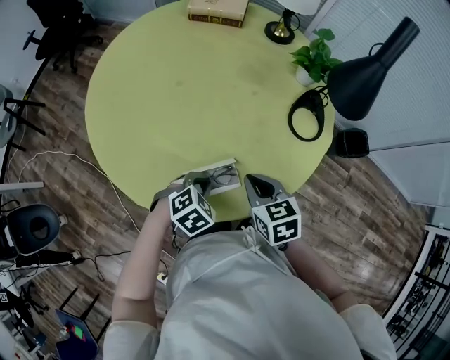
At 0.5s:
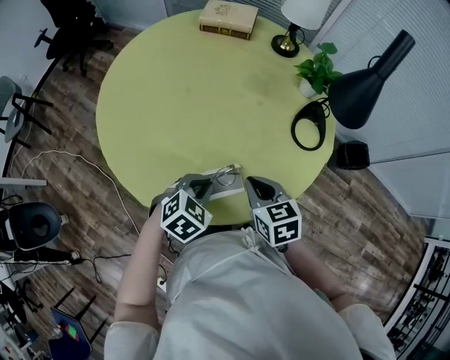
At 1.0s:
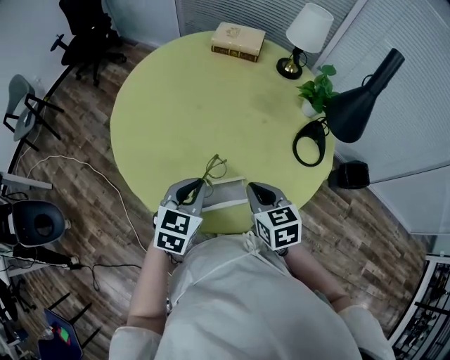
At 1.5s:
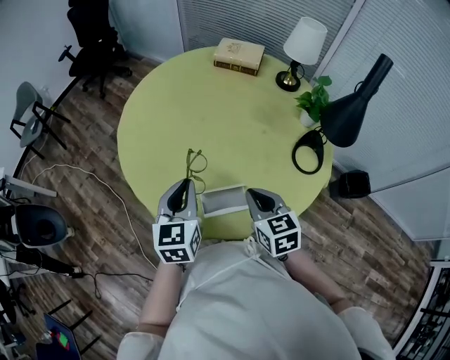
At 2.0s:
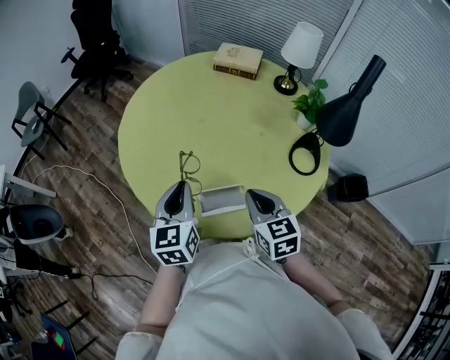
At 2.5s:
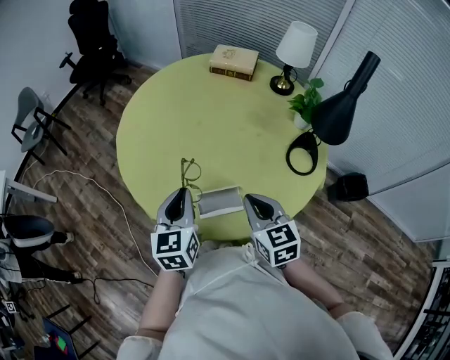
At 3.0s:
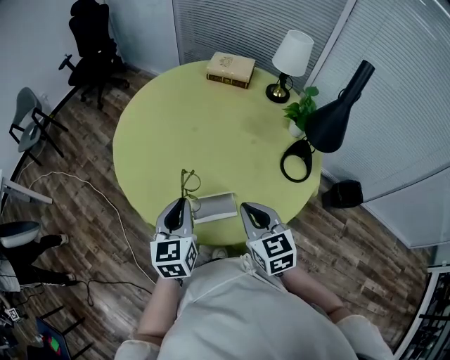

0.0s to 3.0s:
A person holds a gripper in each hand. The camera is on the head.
0.0s to 1.5s: The left gripper moves upward and to the left, about 20 cm, and tilts its fingers about 40 degrees upward. Meanwhile the right gripper goes roughly 10 cm upward.
1.5s to 3.0s: The right gripper moves some 5 cm.

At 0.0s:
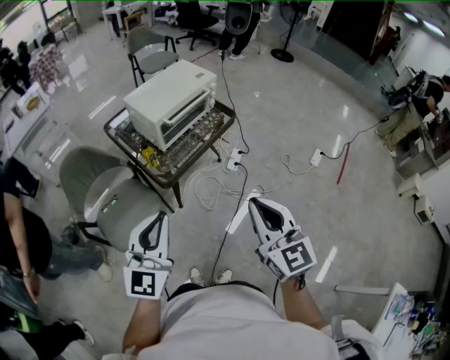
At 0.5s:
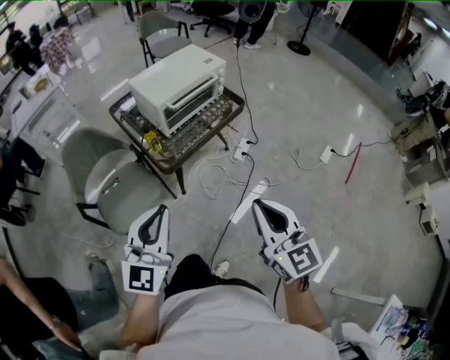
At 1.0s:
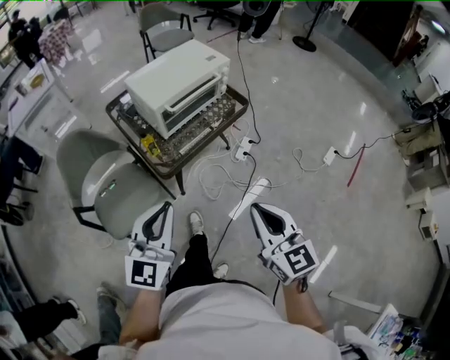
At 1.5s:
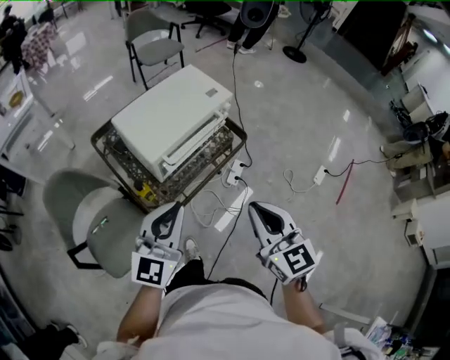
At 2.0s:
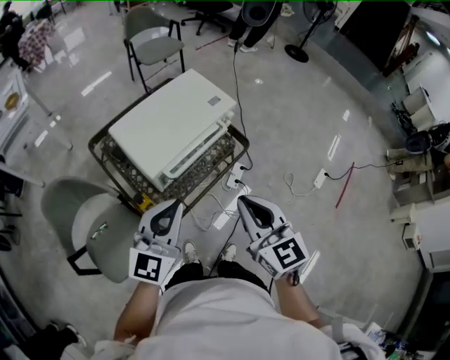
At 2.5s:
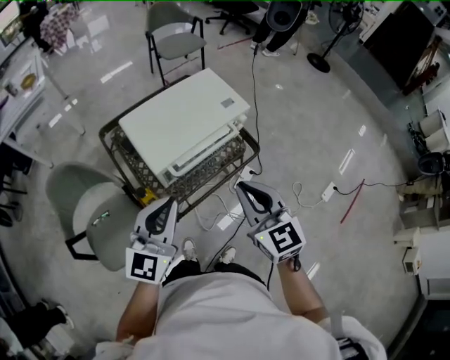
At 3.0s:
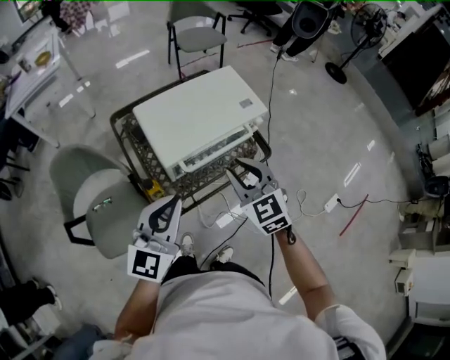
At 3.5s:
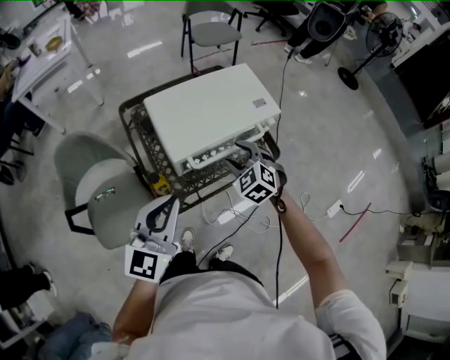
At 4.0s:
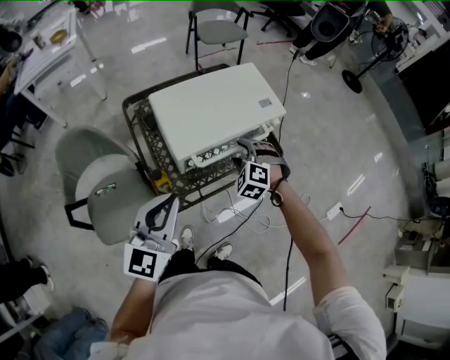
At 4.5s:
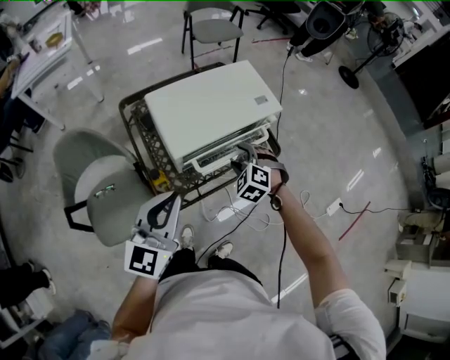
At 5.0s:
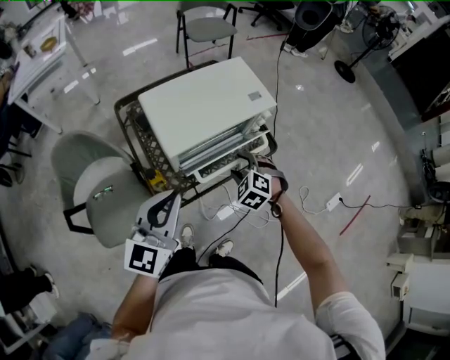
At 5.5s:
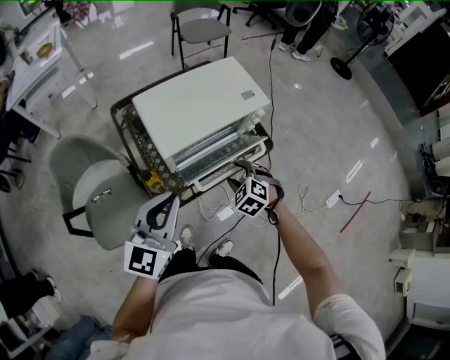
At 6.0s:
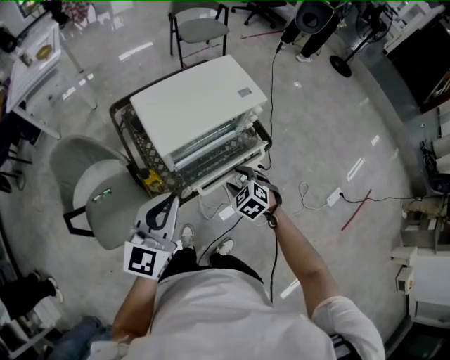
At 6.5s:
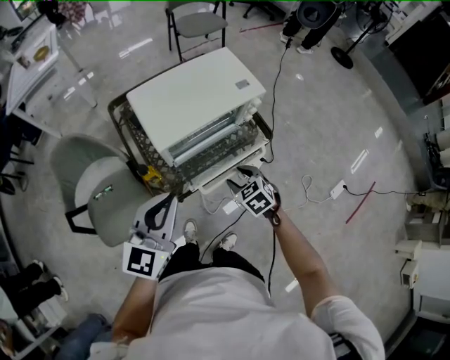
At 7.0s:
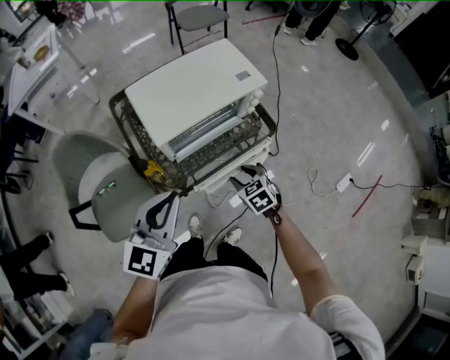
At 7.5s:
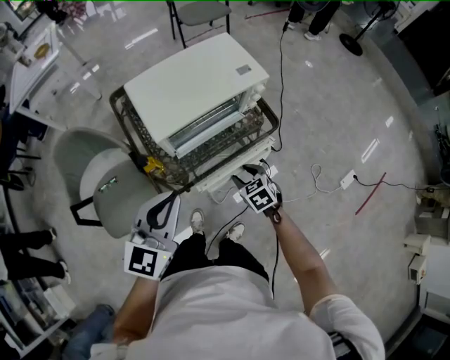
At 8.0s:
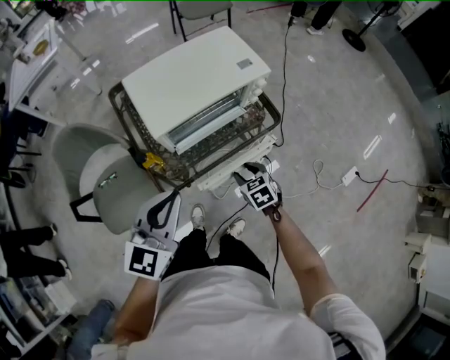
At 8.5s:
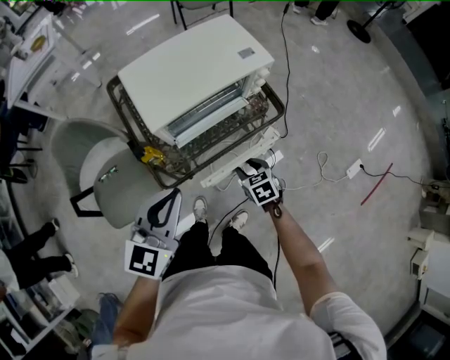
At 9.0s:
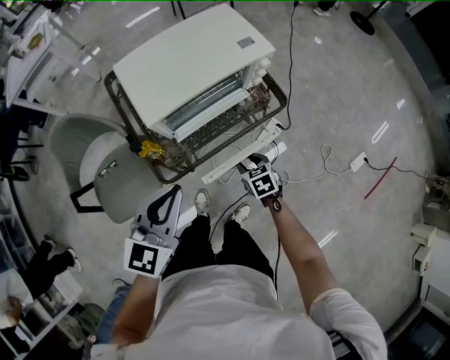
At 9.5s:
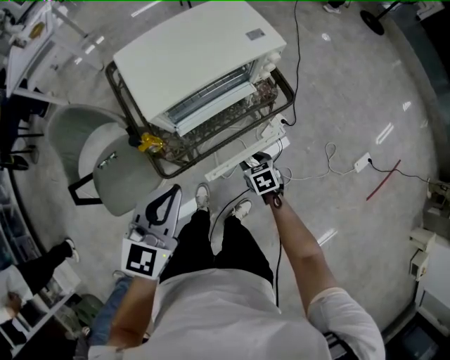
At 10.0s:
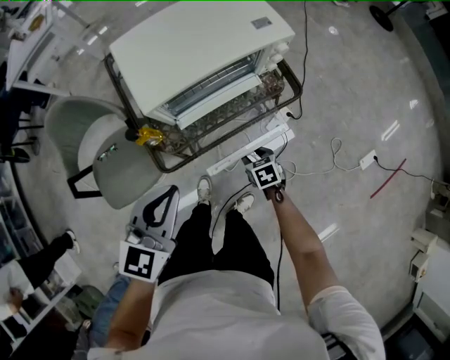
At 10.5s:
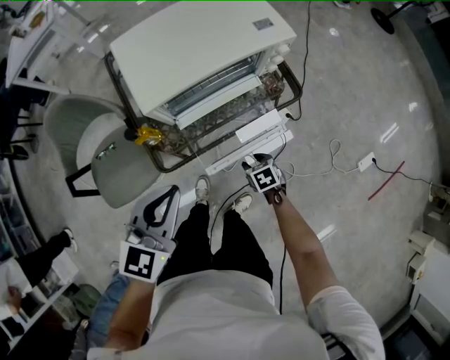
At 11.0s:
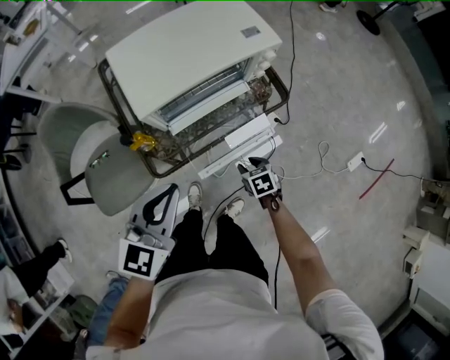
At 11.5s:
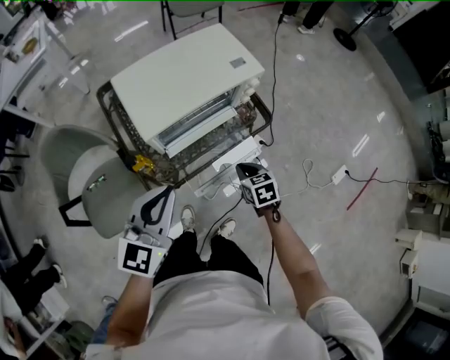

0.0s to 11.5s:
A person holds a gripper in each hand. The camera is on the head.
0.0s to 2.0s: Both grippers move forward, roughly 35 cm.
2.0s to 4.0s: The right gripper heads downward and forward, covering approximately 30 cm, rotates around the line of its fingers by approximately 70 degrees, counterclockwise from behind, and opens. The left gripper shifts roughly 5 cm to the left, and changes its angle by roughly 20 degrees.
4.0s to 6.0s: The right gripper travels backward and to the right by roughly 10 cm, and changes its angle by some 30 degrees.
6.0s to 7.5s: The right gripper shifts roughly 5 cm downward, and rotates roughly 20 degrees.
7.5s to 9.5s: The left gripper shifts some 5 cm downward, while the right gripper shifts about 10 cm downward.
9.5s to 11.5s: The right gripper shifts some 10 cm upward, and closes.

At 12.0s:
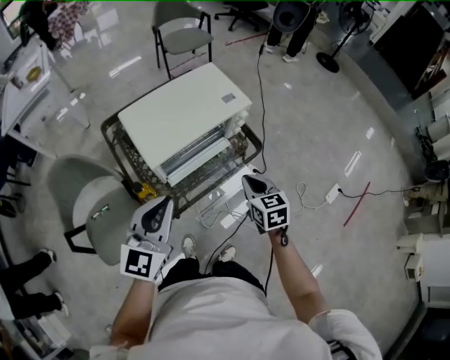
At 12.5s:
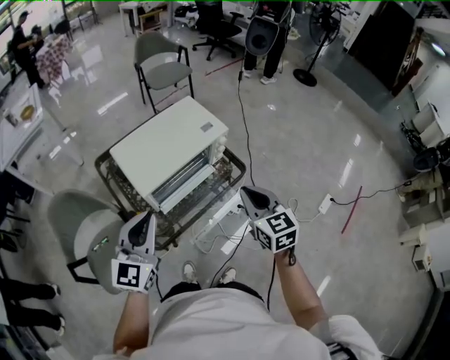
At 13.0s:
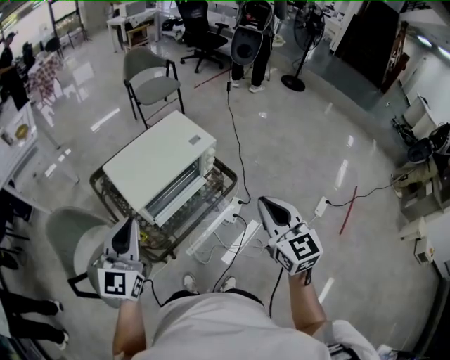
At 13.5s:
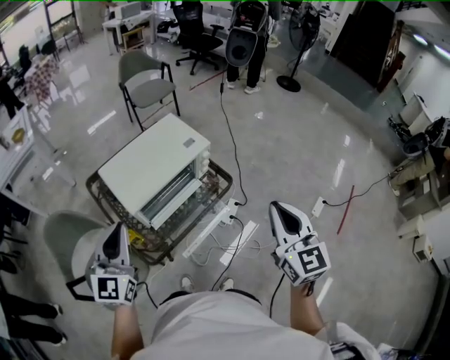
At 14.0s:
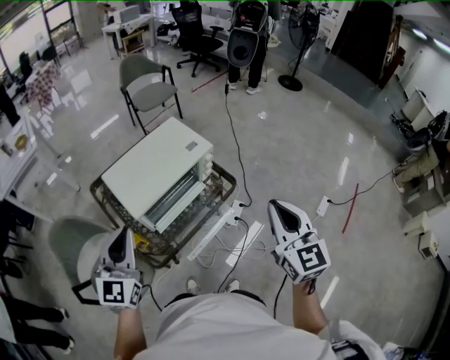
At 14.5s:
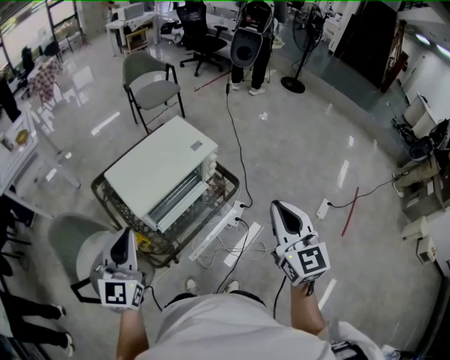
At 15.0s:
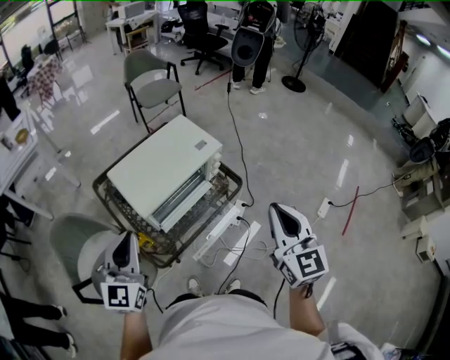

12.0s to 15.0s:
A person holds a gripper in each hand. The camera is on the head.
12.0s to 13.5s: The right gripper moves upward and to the right, approximately 25 cm, and rotates some 30 degrees. Meanwhile the left gripper is displaced upward by about 5 cm.
13.5s to 15.0s: The grippers move only a little.

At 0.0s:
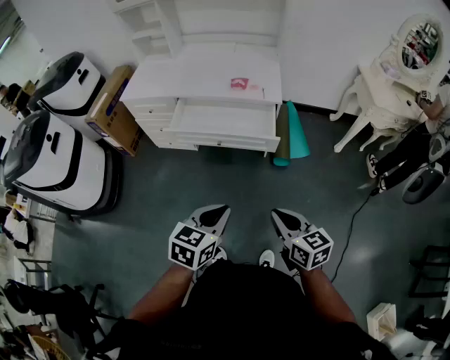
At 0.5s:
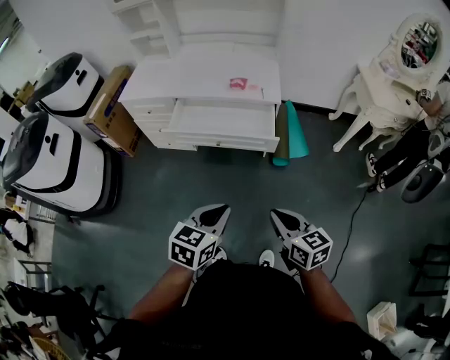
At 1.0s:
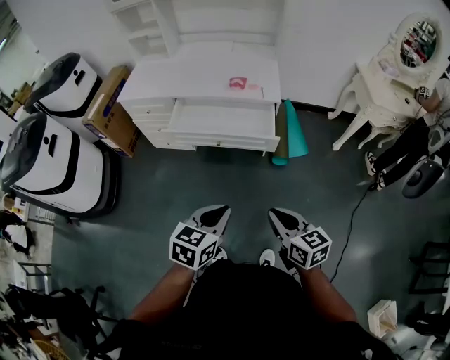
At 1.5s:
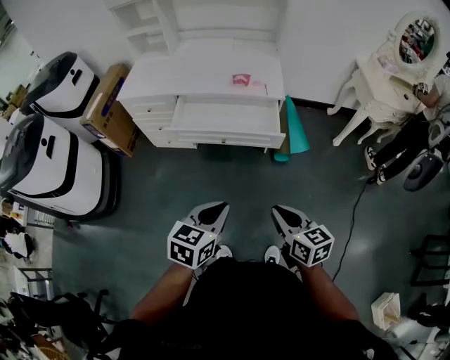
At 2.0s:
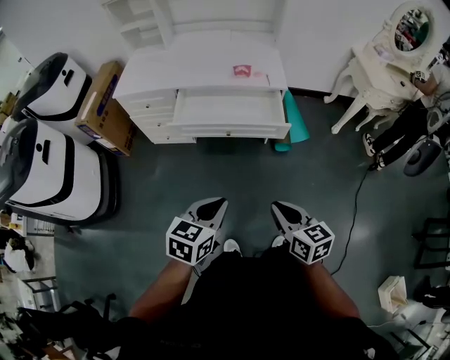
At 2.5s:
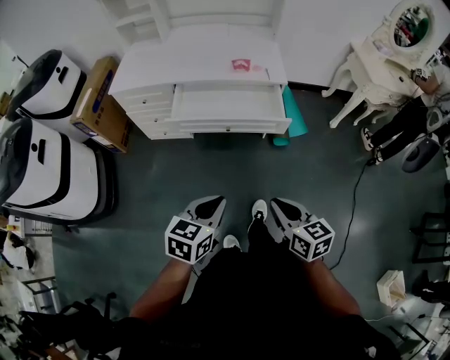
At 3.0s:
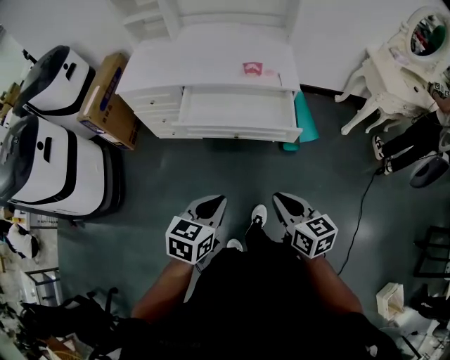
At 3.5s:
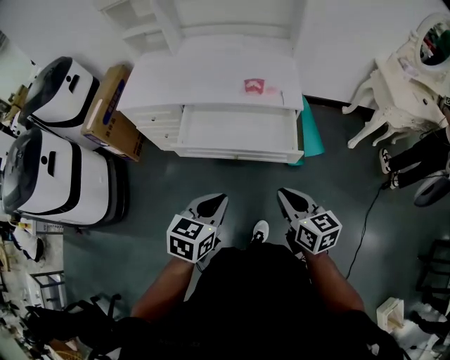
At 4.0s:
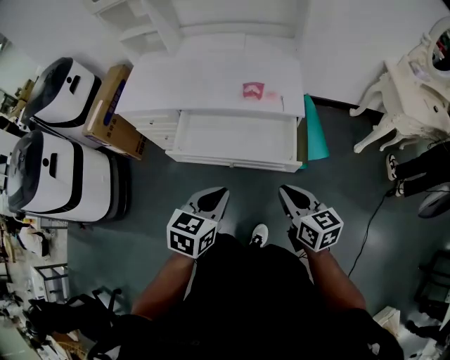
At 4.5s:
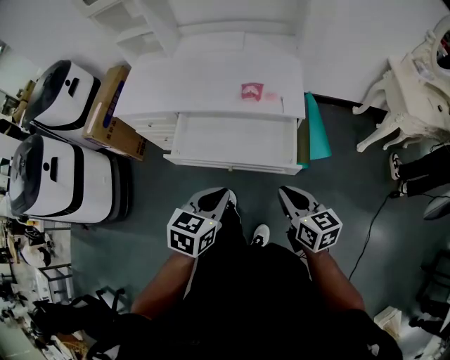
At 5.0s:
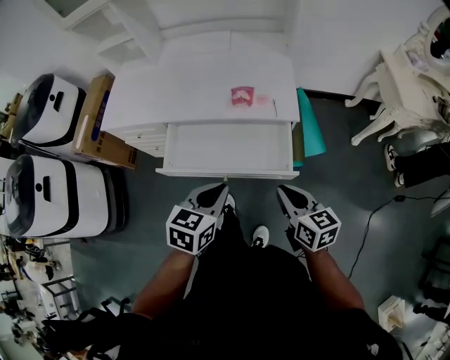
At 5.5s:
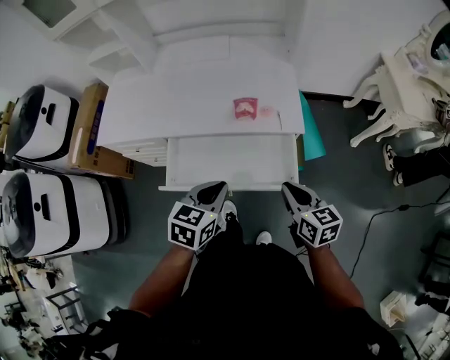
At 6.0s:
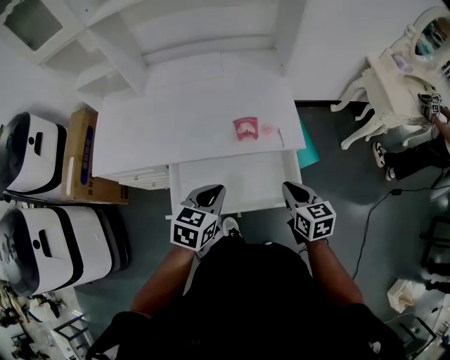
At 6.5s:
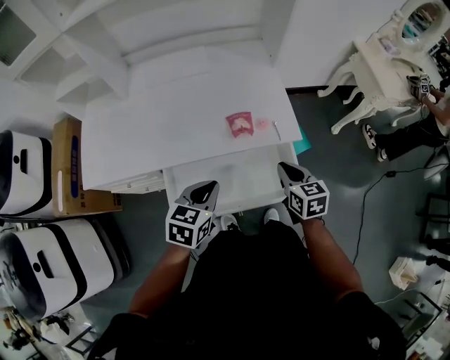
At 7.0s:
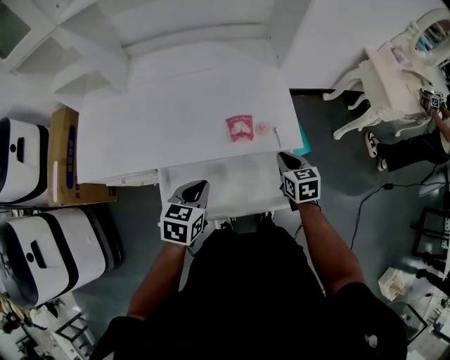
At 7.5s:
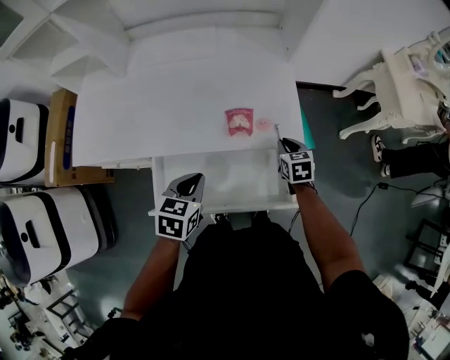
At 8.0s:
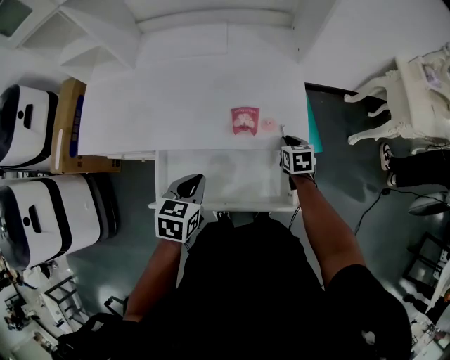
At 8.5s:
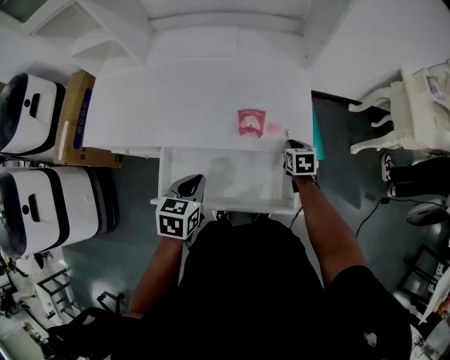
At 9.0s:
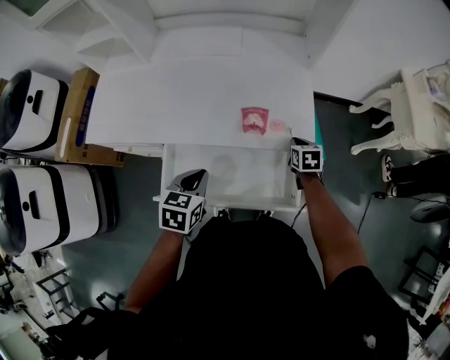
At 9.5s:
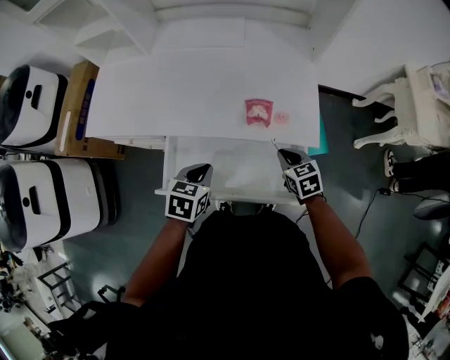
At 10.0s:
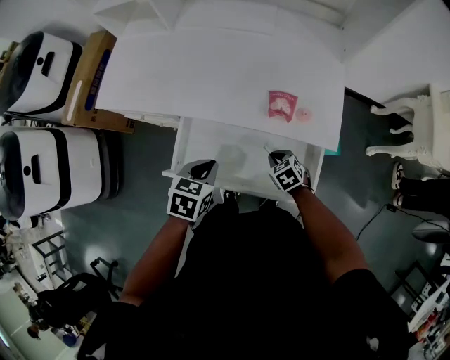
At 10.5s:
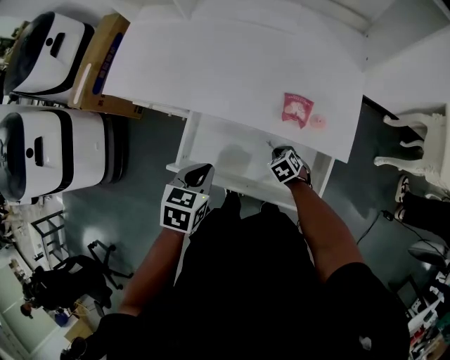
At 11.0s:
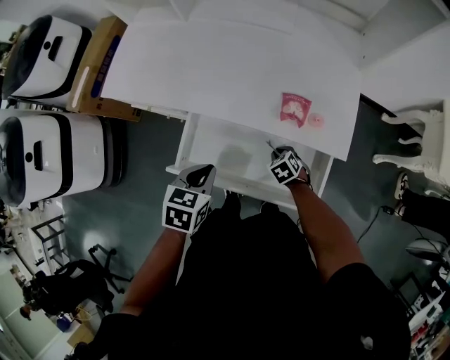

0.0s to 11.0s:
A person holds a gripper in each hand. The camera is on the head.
0.0s to 2.0s: Both grippers travel together to the left, some 10 cm.
2.0s to 3.5s: The grippers both shift forward by some 15 cm.
3.5s to 5.5s: The grippers both shift forward by some 20 cm.
5.5s to 7.5s: The left gripper heads forward, to the left and downward, covering about 15 cm, while the right gripper is displaced forward and downward by some 30 cm, and rotates some 30 degrees.
7.5s to 9.0s: There are only small adjustments of the grippers.
9.0s to 11.0s: The left gripper moves to the left, roughly 5 cm; the right gripper shifts approximately 20 cm to the left and downward, and turns by approximately 40 degrees.
